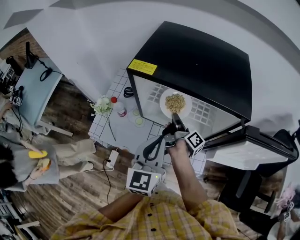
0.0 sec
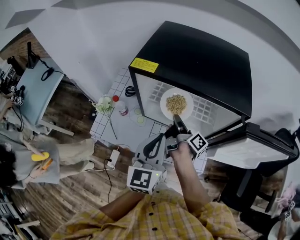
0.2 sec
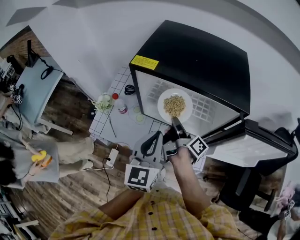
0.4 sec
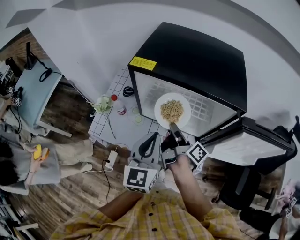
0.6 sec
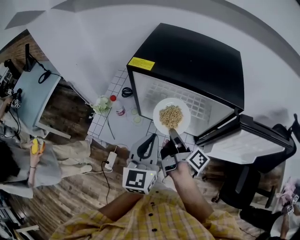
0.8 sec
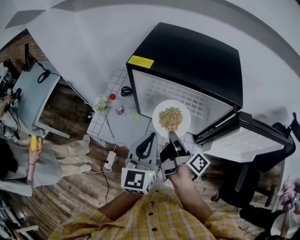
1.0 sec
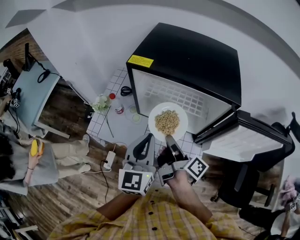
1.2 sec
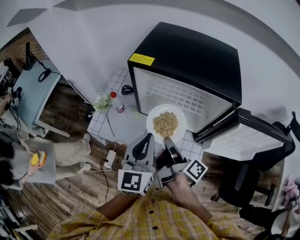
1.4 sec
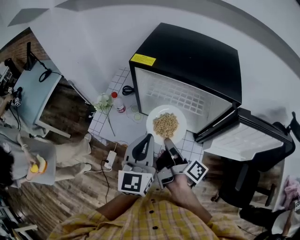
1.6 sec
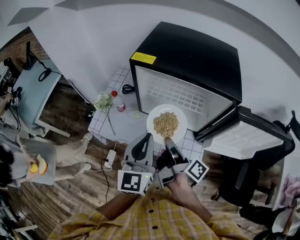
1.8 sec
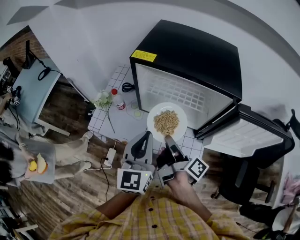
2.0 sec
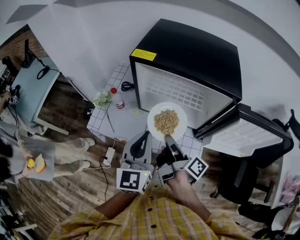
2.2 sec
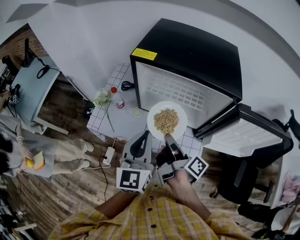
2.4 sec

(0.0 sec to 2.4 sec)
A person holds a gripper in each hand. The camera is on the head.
0.0 sec - 1.2 sec: The right gripper shifts roughly 20 cm backward and upward. Meanwhile the left gripper ends up roughly 5 cm from where it was.
1.2 sec - 2.4 sec: The grippers make only small movements.

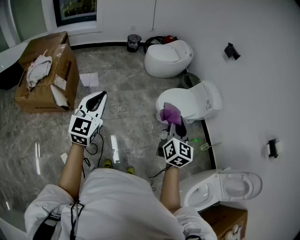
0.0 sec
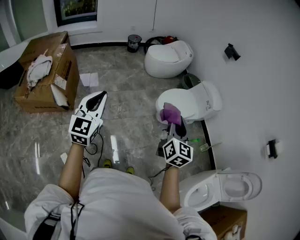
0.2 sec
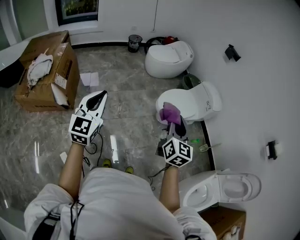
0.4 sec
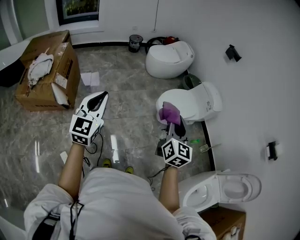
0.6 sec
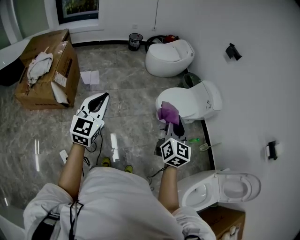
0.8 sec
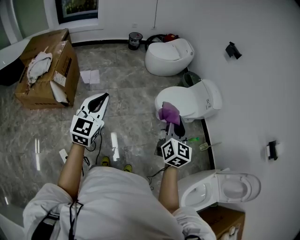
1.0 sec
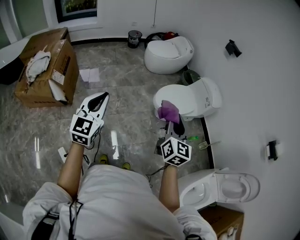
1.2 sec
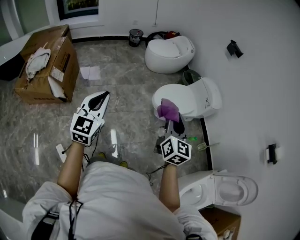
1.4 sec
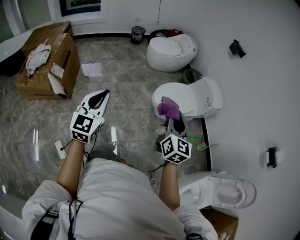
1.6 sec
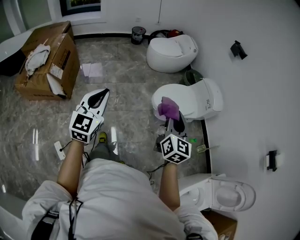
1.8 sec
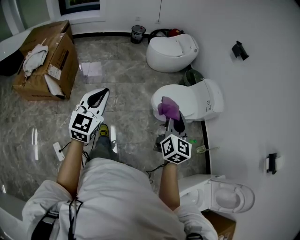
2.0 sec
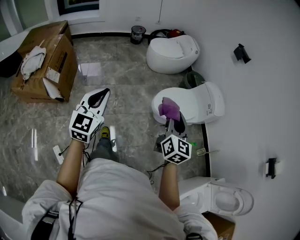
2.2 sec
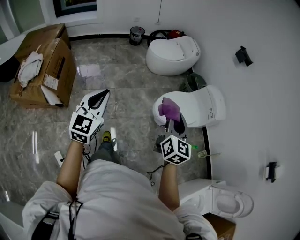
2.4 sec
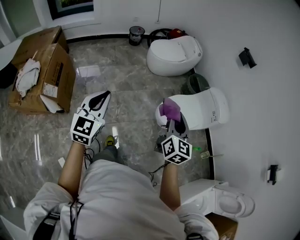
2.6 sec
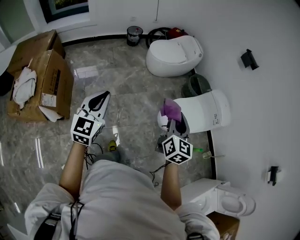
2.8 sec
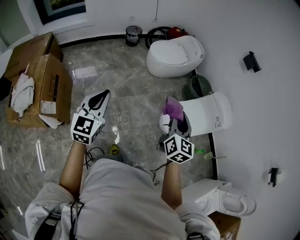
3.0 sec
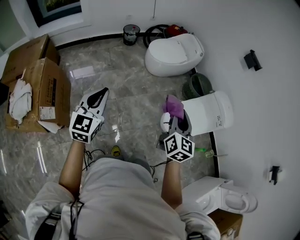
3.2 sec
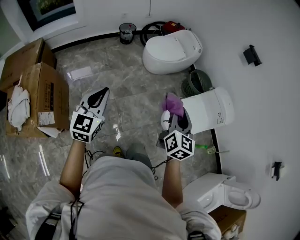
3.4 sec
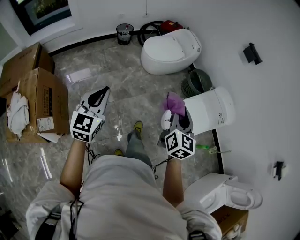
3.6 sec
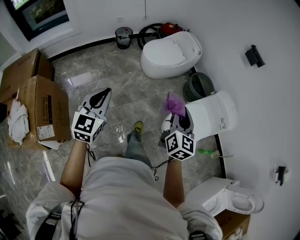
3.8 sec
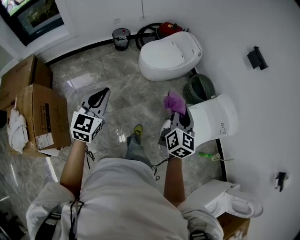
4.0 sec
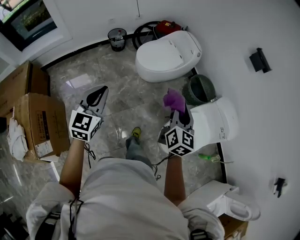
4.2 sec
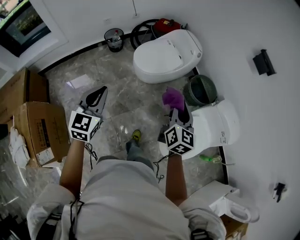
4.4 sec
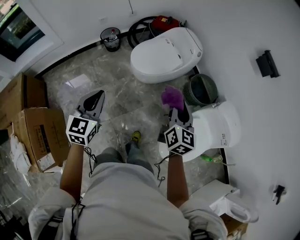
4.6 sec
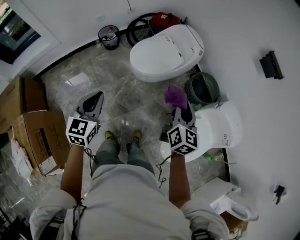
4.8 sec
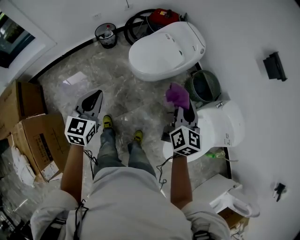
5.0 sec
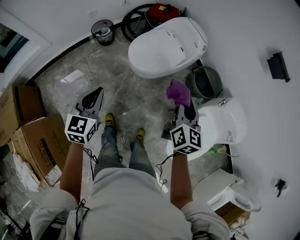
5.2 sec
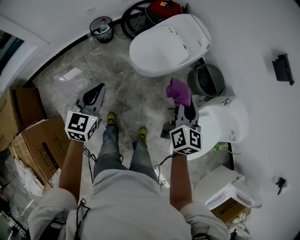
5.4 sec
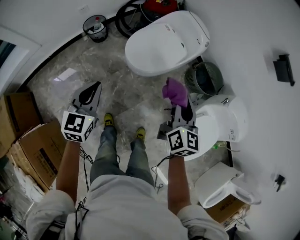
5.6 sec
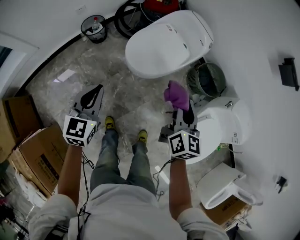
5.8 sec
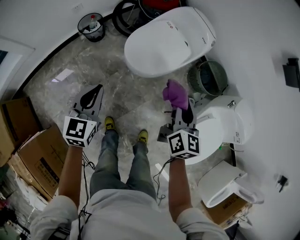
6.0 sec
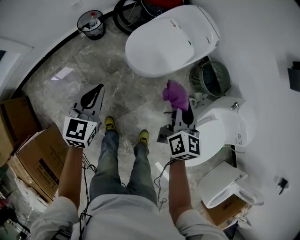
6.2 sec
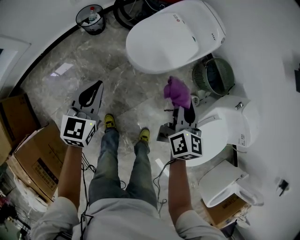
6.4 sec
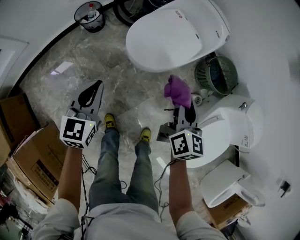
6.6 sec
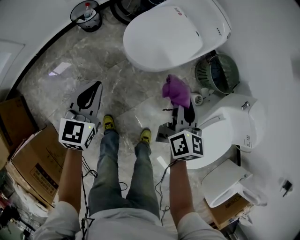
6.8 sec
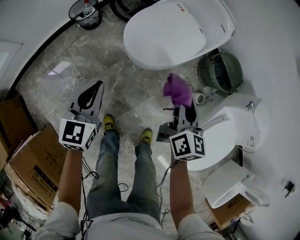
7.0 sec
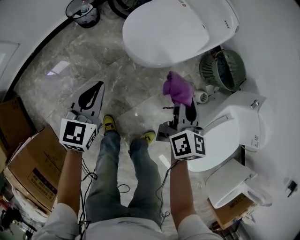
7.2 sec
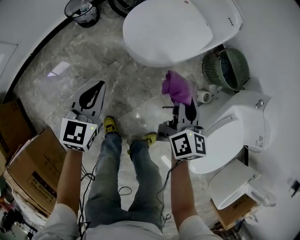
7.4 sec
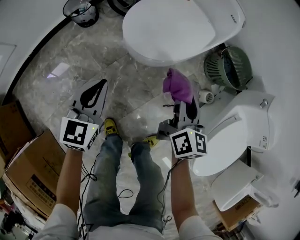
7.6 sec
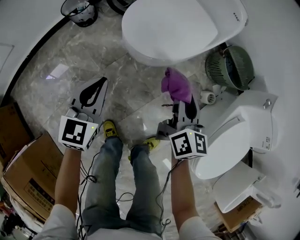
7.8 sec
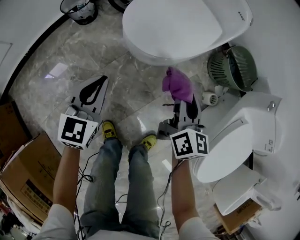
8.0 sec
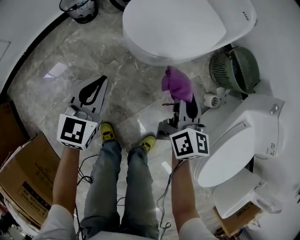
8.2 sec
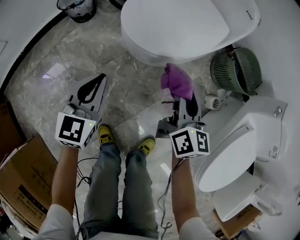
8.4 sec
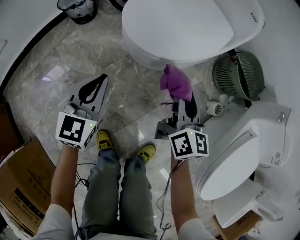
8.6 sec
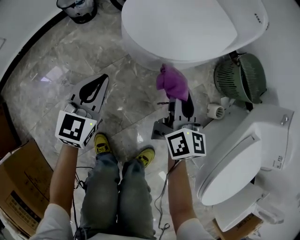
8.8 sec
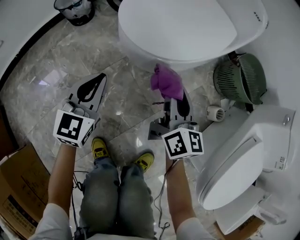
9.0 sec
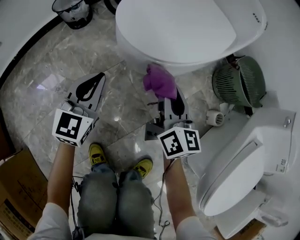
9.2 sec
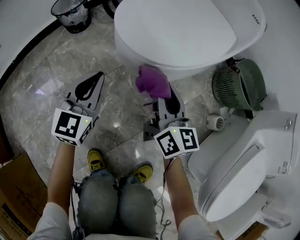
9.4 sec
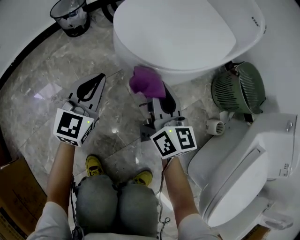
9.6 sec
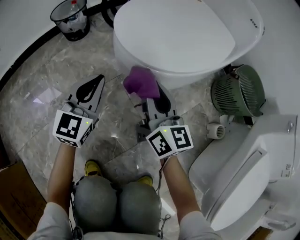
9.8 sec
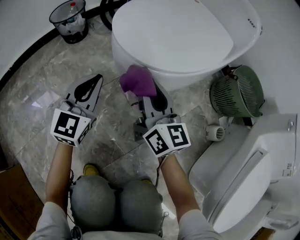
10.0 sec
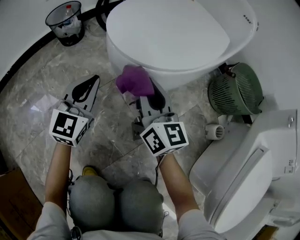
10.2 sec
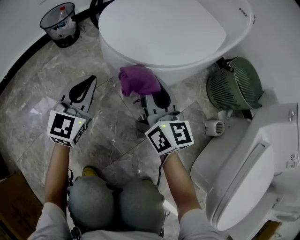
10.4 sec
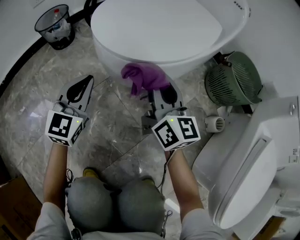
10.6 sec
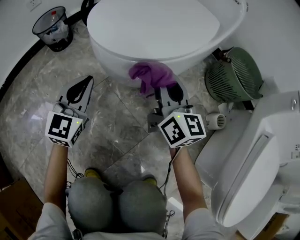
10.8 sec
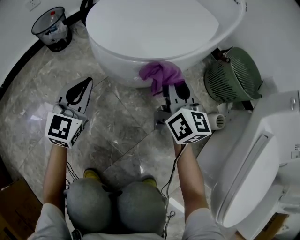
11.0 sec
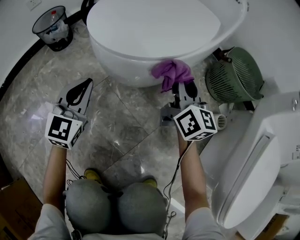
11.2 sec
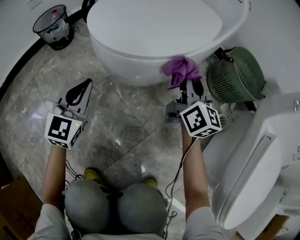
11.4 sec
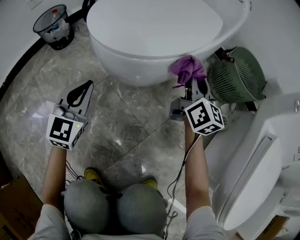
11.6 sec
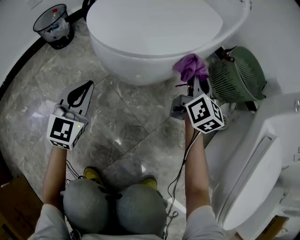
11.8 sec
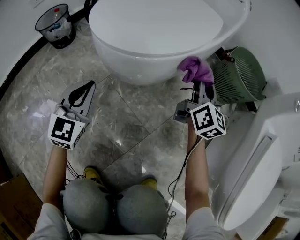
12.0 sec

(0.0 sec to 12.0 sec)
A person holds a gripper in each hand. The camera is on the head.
0.0 sec - 1.6 sec: The grippers both shift to the right by about 10 cm.
1.6 sec - 3.0 sec: Both grippers travel together forward and to the left, some 40 cm.
3.0 sec - 4.4 sec: Both grippers move forward, roughly 40 cm.
4.4 sec - 6.0 sec: The two grippers go some 35 cm forward, downward and to the left.
6.0 sec - 7.6 sec: Both grippers travel together downward, approximately 25 cm.
7.6 sec - 9.0 sec: The grippers both shift downward by about 20 cm.
9.0 sec - 10.4 sec: The right gripper moves roughly 10 cm, while the left gripper shifts approximately 5 cm downward.
10.4 sec - 12.0 sec: The right gripper is displaced to the right by about 20 cm, and swivels about 30 degrees.

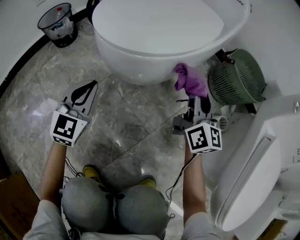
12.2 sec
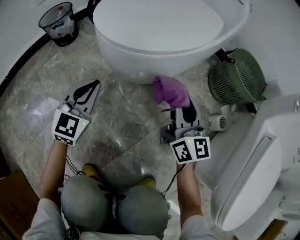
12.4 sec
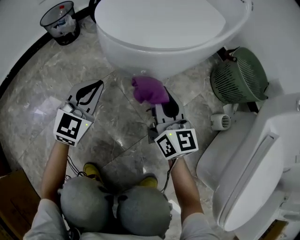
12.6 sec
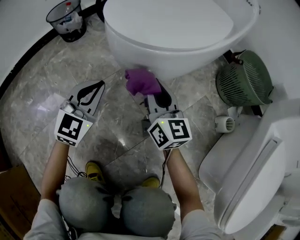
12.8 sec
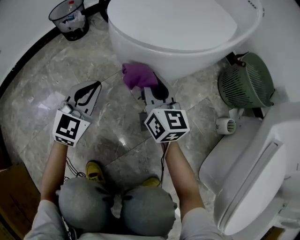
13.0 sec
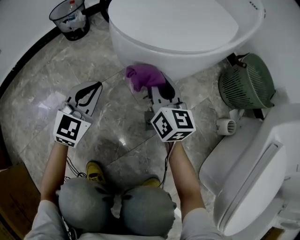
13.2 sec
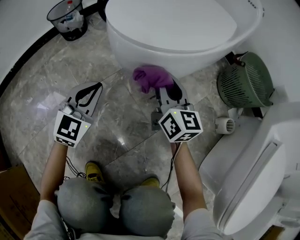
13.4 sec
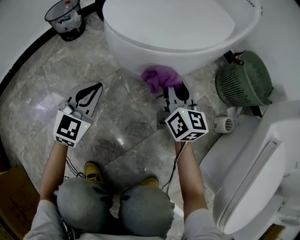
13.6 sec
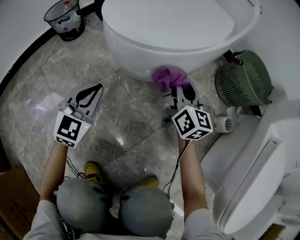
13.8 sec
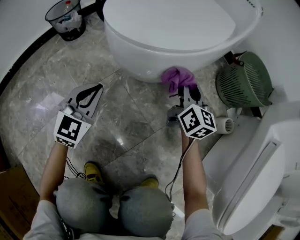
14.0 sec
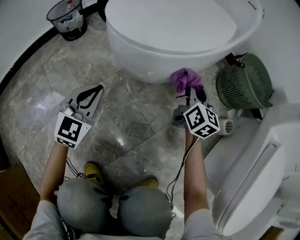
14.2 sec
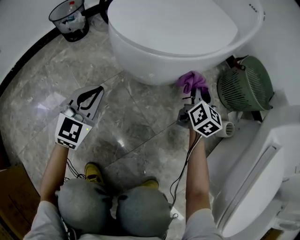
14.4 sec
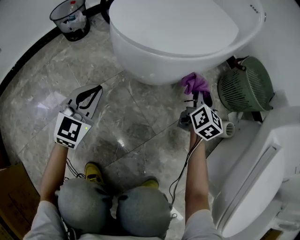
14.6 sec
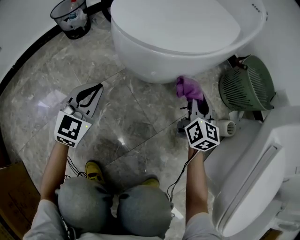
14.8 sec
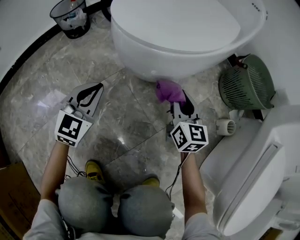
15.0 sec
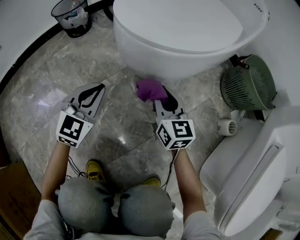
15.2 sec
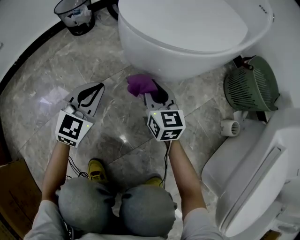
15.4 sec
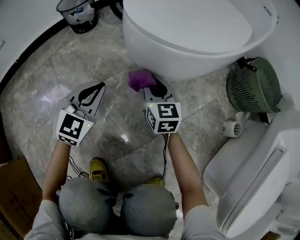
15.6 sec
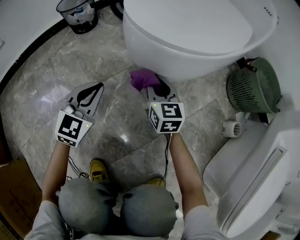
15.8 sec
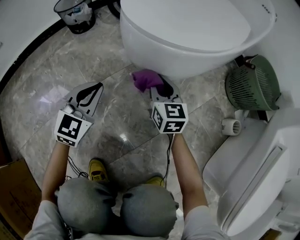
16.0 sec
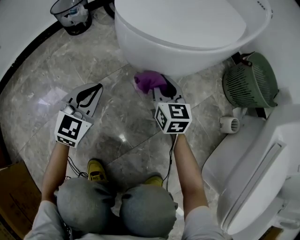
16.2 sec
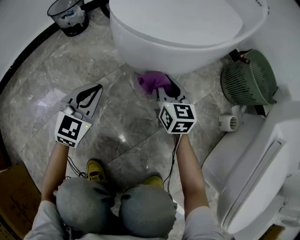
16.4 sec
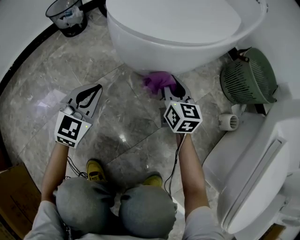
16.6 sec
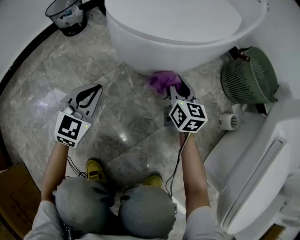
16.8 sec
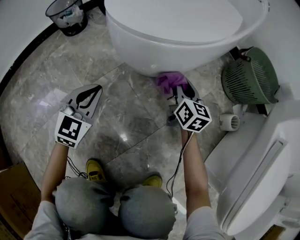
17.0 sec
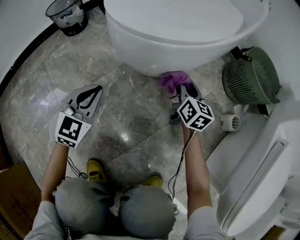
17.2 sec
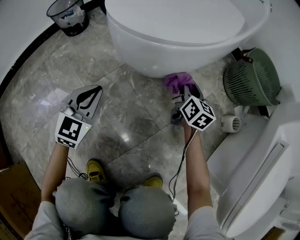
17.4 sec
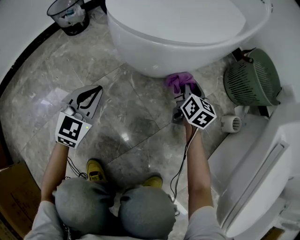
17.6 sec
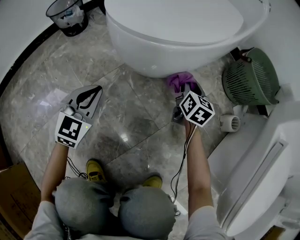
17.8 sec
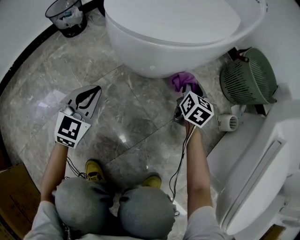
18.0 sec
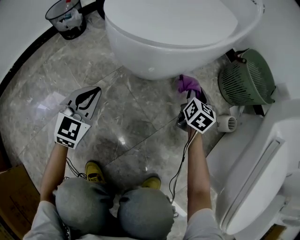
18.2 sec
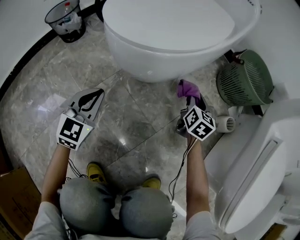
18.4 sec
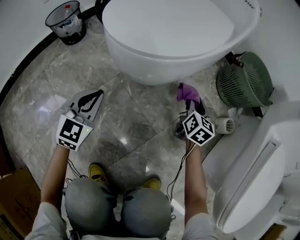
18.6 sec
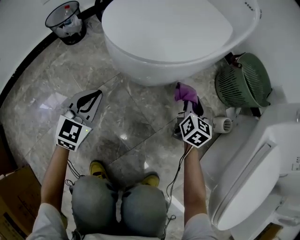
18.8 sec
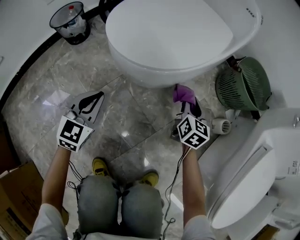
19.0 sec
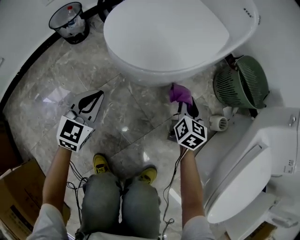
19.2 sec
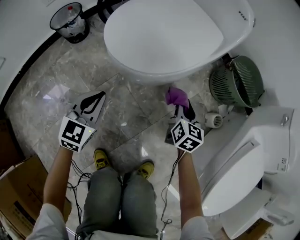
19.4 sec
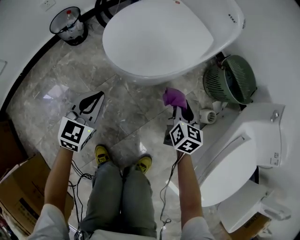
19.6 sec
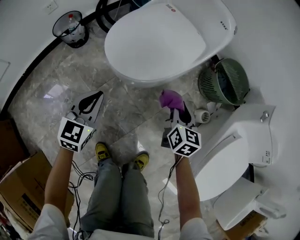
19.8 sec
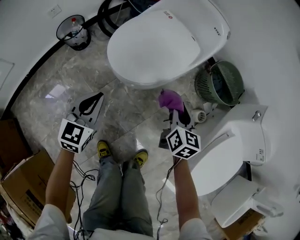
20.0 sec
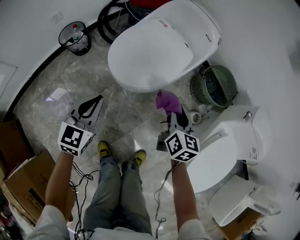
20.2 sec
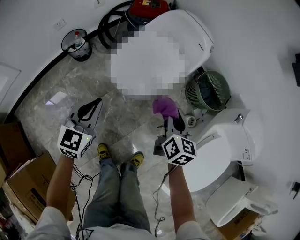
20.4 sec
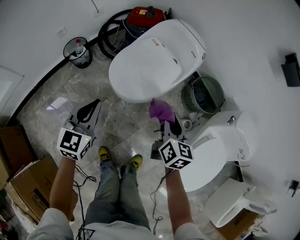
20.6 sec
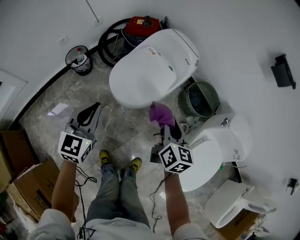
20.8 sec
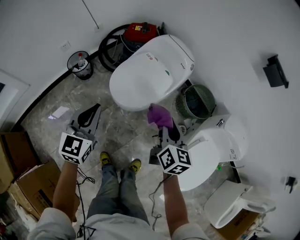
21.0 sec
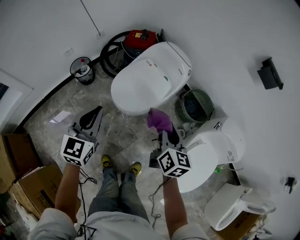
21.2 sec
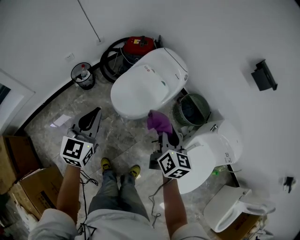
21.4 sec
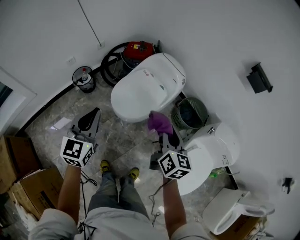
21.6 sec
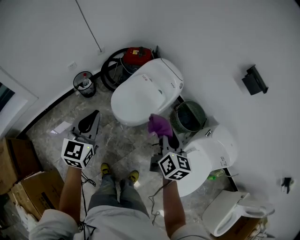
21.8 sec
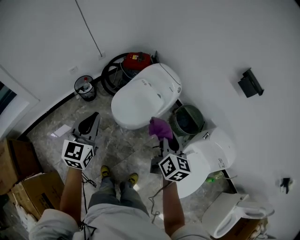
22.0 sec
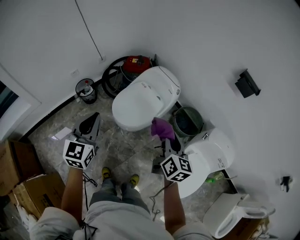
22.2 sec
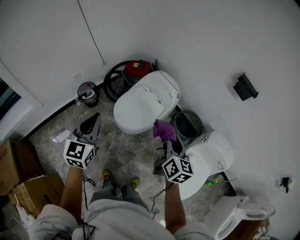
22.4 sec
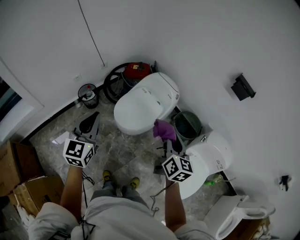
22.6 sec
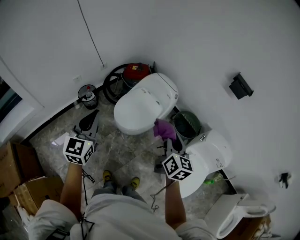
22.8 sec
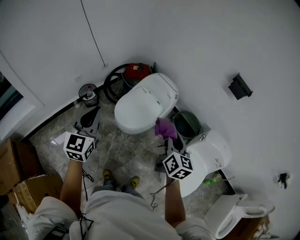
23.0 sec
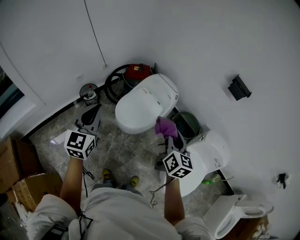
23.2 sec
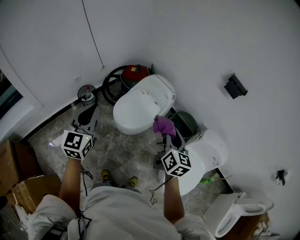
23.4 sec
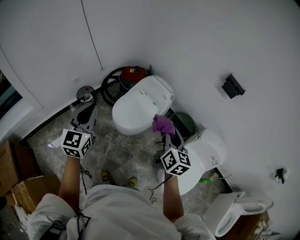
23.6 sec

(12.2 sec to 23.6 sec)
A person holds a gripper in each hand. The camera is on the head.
12.2 sec - 13.6 sec: The right gripper shifts roughly 10 cm to the left and downward.
13.6 sec - 15.0 sec: The right gripper goes to the right and returns, approximately 15 cm each way.
15.0 sec - 16.4 sec: The right gripper is displaced to the left by some 5 cm.
16.4 sec - 17.8 sec: The right gripper goes about 10 cm to the right, and rotates some 20 degrees.
17.8 sec - 19.4 sec: Both grippers travel together upward, some 15 cm.
19.4 sec - 20.8 sec: The grippers both shift upward by approximately 50 cm.
20.8 sec - 22.2 sec: The grippers both shift upward by about 25 cm.
22.2 sec - 23.6 sec: The two grippers go roughly 10 cm upward and backward.
